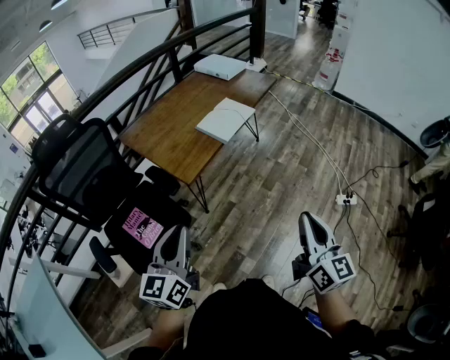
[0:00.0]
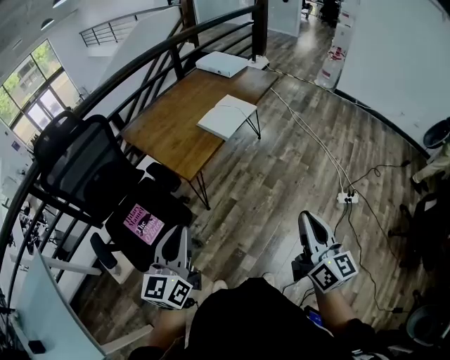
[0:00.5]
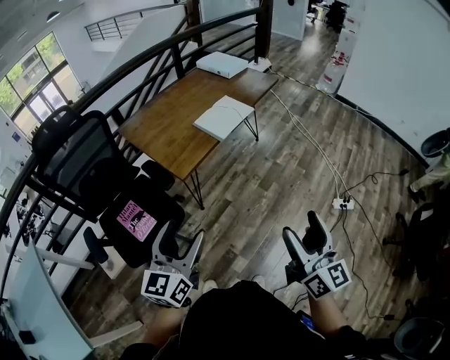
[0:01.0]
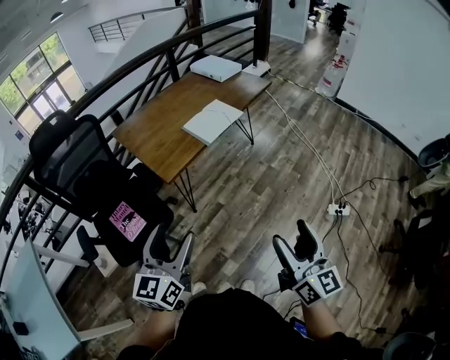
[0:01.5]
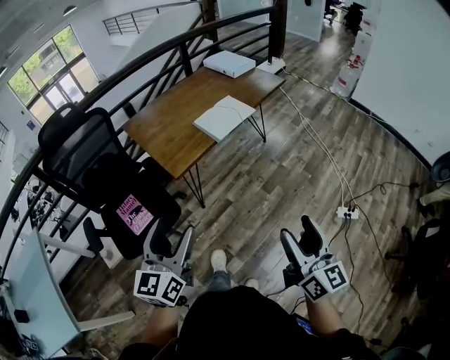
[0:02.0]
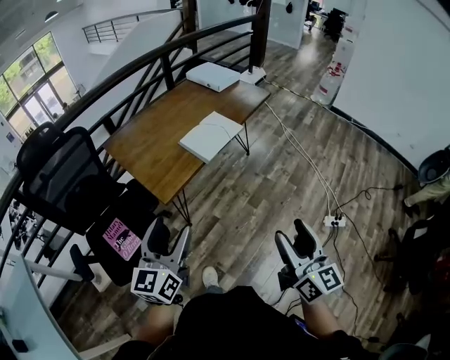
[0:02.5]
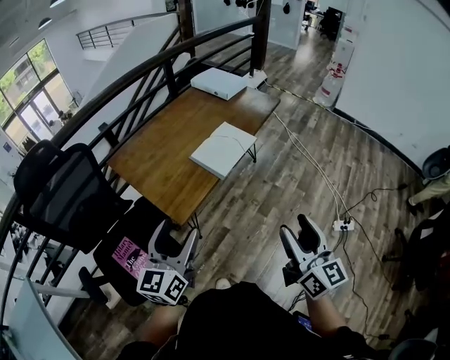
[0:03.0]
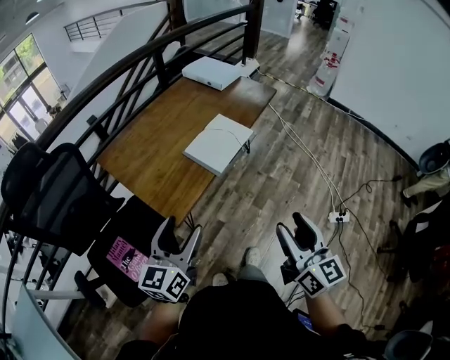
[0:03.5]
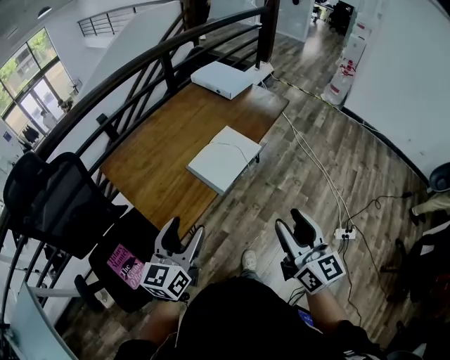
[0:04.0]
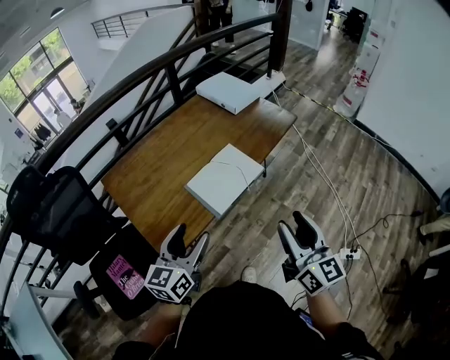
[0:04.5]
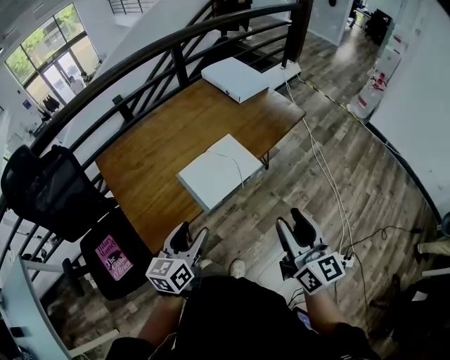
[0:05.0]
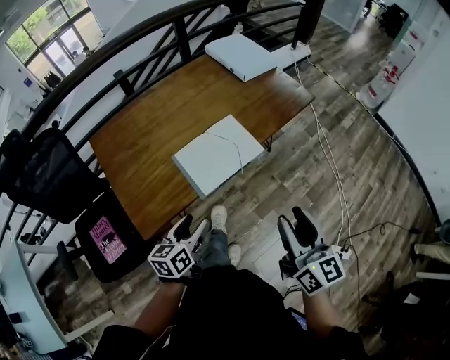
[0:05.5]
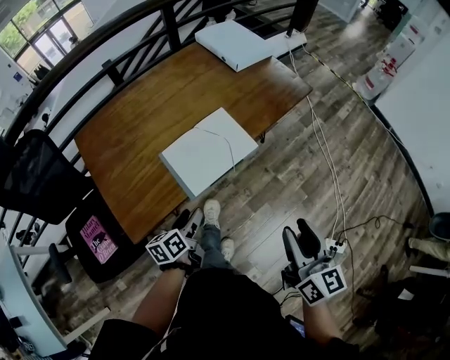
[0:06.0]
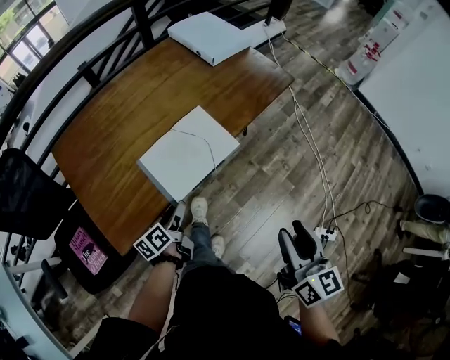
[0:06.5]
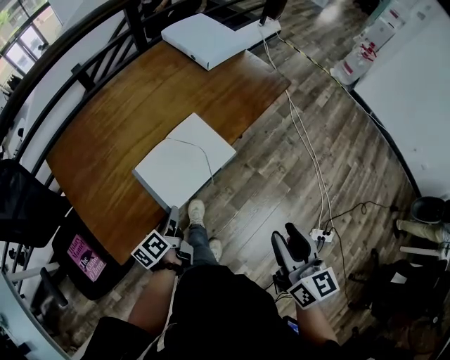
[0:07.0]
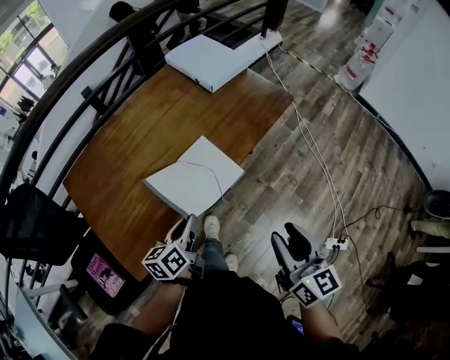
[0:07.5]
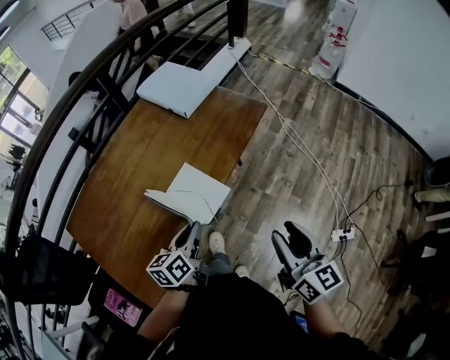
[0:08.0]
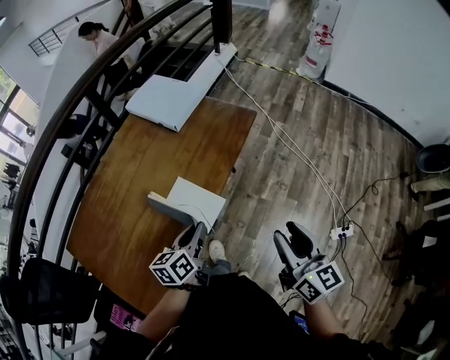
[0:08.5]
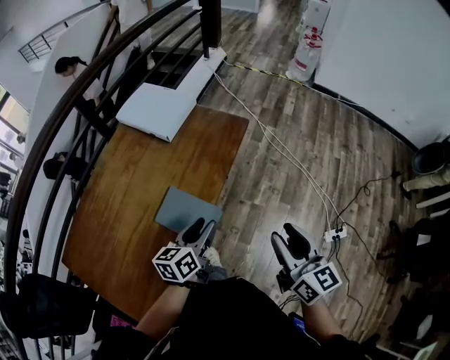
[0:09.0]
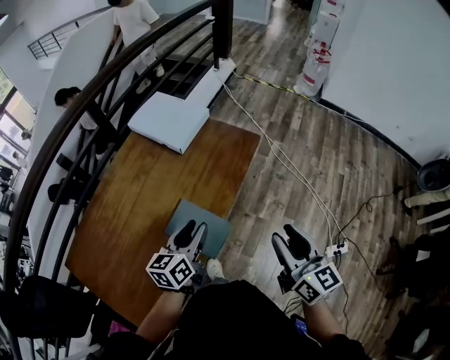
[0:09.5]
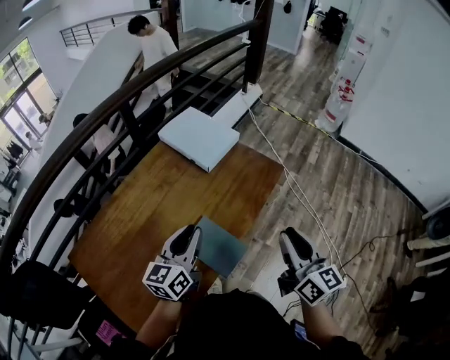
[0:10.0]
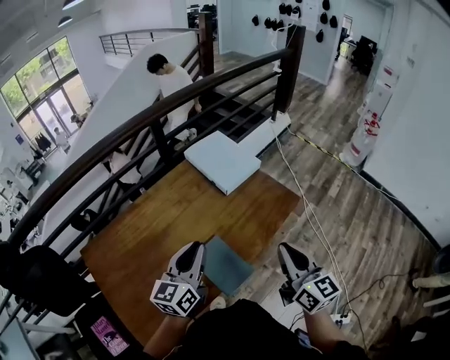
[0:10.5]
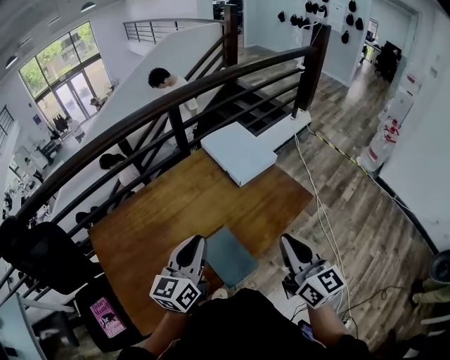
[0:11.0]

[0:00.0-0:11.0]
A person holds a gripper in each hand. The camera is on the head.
0:00.0 to 0:02.0: The grippers both shift to the right by about 10 cm. The left gripper opens up, while the right gripper opens.
0:02.0 to 0:03.5: The right gripper travels forward and to the left by roughly 20 cm; the left gripper is displaced forward by about 25 cm.
0:03.5 to 0:05.5: The right gripper travels forward and to the right by approximately 25 cm. The left gripper goes approximately 25 cm downward, forward and to the right, and swivels approximately 30 degrees.
0:05.5 to 0:07.5: The left gripper heads forward, covering some 15 cm, and closes its fingers, while the right gripper shifts roughly 5 cm forward.
0:07.5 to 0:09.0: The right gripper shifts roughly 10 cm forward, while the left gripper moves forward and to the right, approximately 15 cm, changes its angle by approximately 30 degrees, and opens up.
0:09.0 to 0:11.0: The right gripper shifts by about 20 cm, turns by some 30 degrees, and closes its fingers. Meanwhile the left gripper shifts by about 20 cm, changes its angle by about 40 degrees, and closes its fingers.

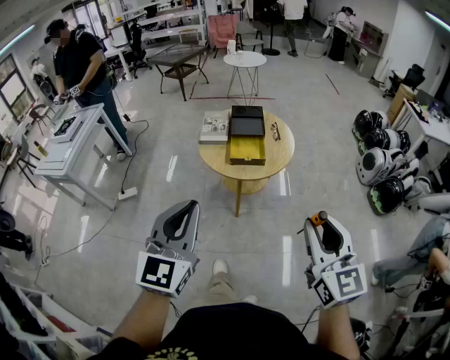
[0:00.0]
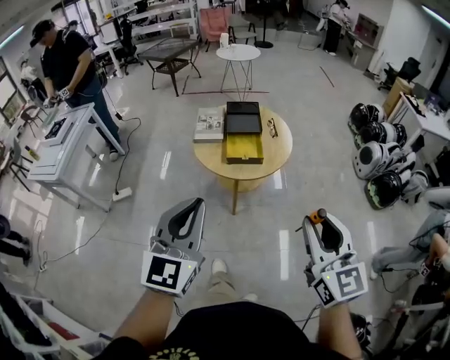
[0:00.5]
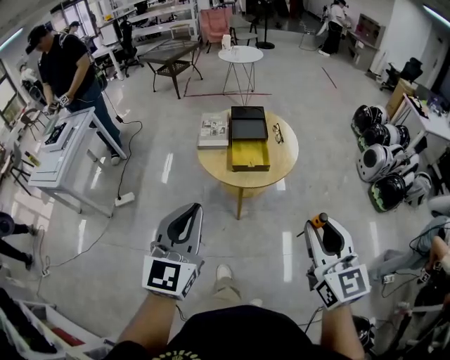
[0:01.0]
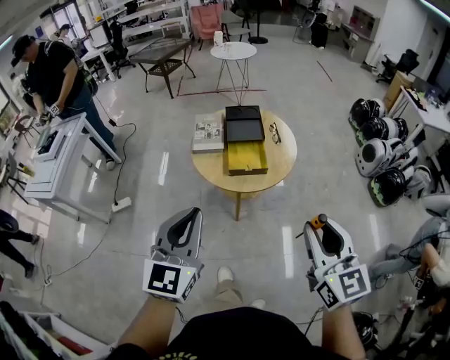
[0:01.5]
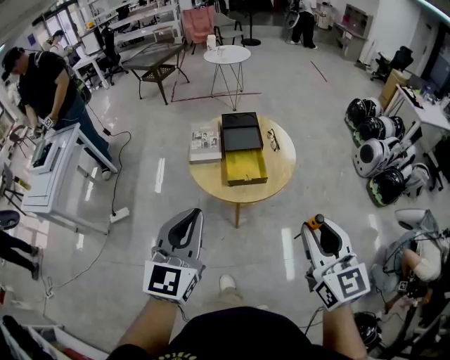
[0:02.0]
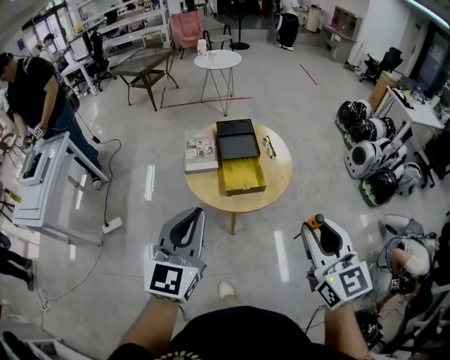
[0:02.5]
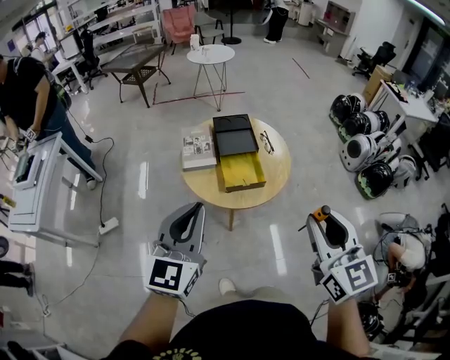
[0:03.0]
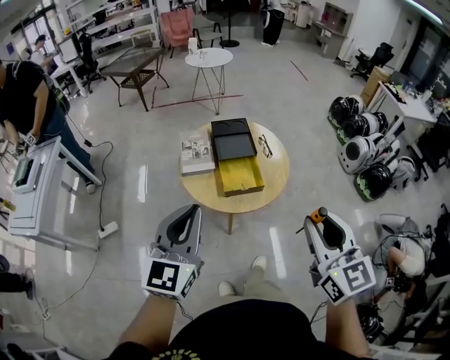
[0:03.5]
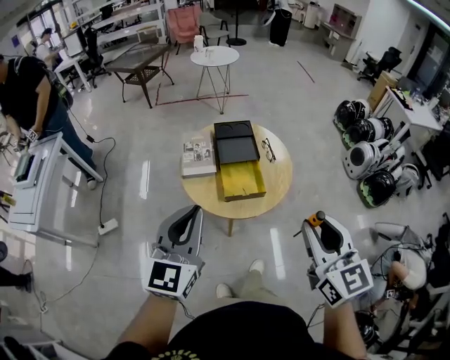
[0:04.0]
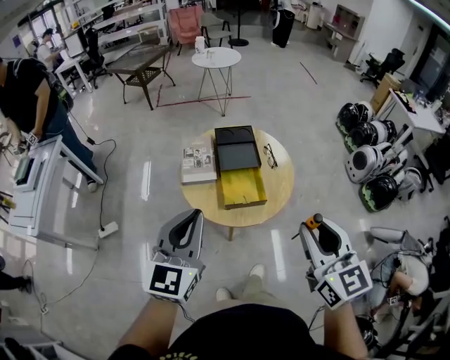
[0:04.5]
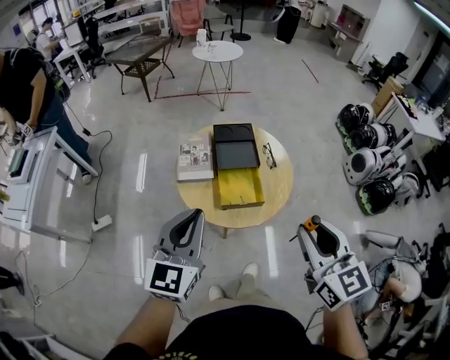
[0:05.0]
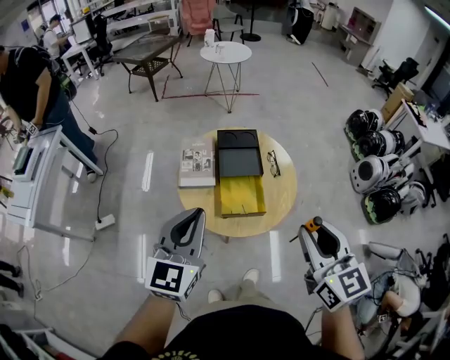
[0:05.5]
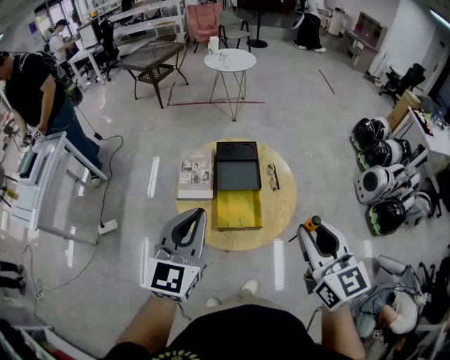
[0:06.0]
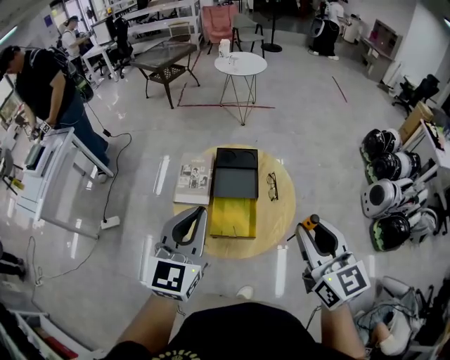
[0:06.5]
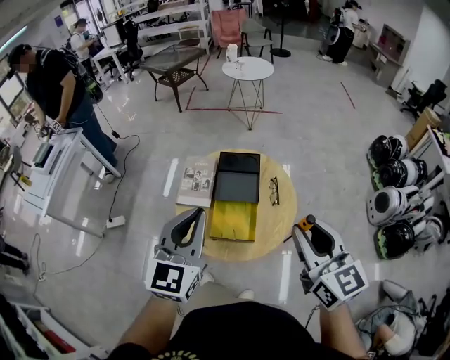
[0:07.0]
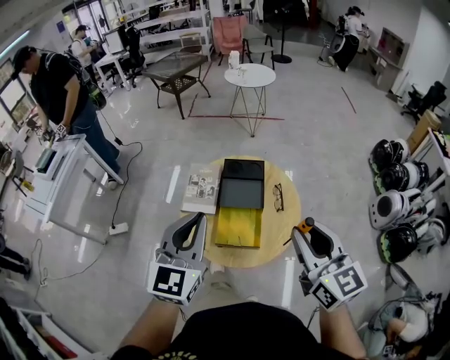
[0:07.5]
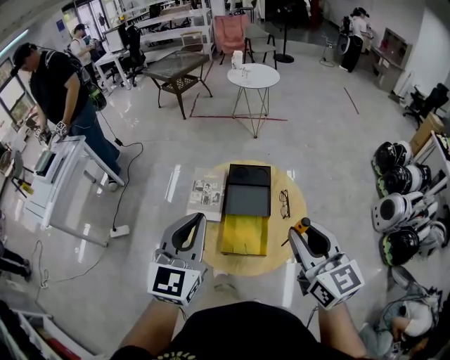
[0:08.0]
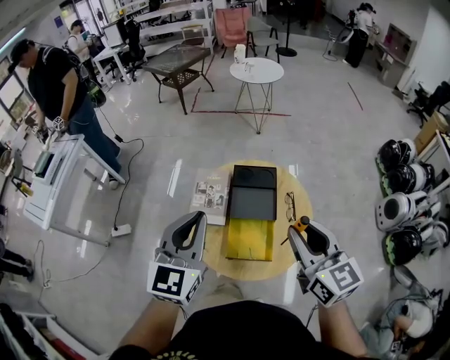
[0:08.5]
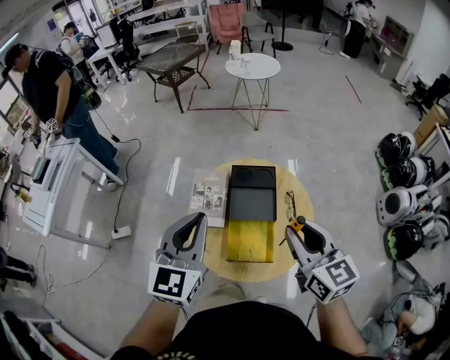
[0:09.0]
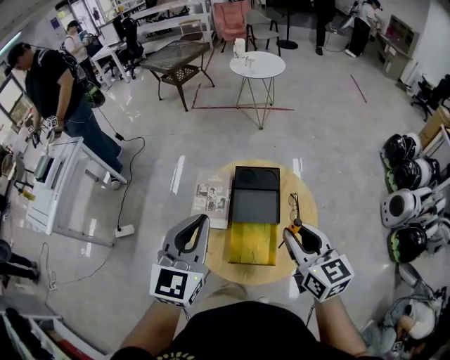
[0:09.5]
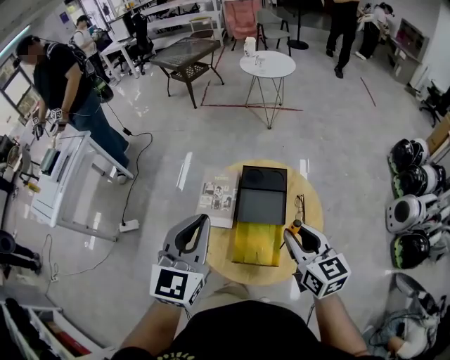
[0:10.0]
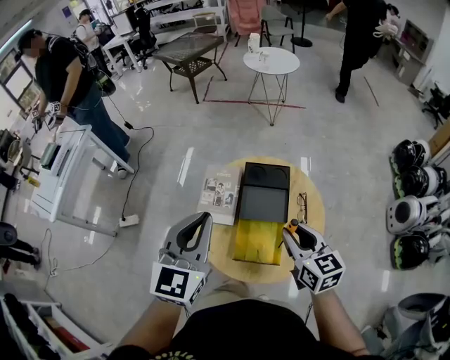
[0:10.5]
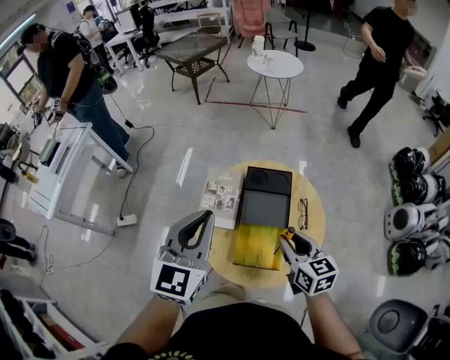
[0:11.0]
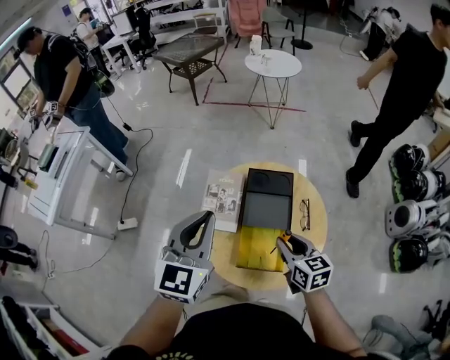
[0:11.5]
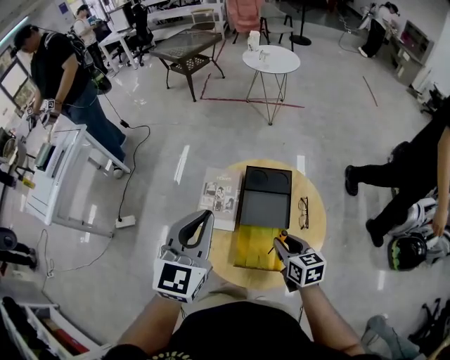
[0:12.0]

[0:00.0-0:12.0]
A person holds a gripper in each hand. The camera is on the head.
0:00.0 to 0:02.0: The two grippers go about 20 cm forward.
0:02.0 to 0:04.0: The grippers both shift forward by about 10 cm.
0:04.0 to 0:06.0: The right gripper is displaced forward by about 15 cm, while the left gripper travels forward and to the right by about 15 cm.
0:06.0 to 0:08.0: The right gripper travels forward by approximately 10 cm, while the left gripper travels forward by some 5 cm.
0:08.0 to 0:10.0: The left gripper is displaced forward by about 10 cm, while the right gripper travels downward and forward by approximately 15 cm.
0:10.0 to 0:12.0: The right gripper travels downward by some 15 cm. The left gripper ends up approximately 5 cm from where it was.

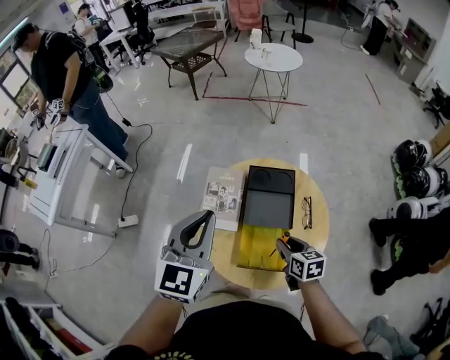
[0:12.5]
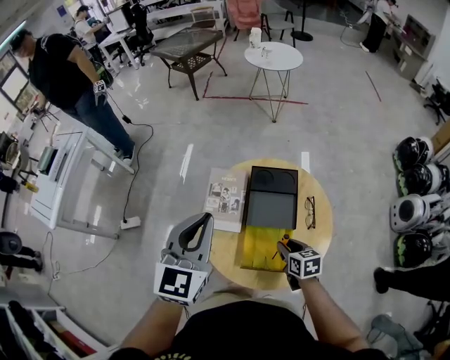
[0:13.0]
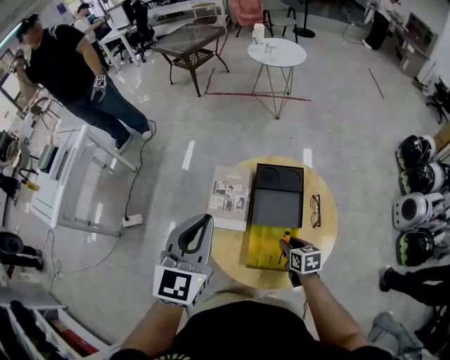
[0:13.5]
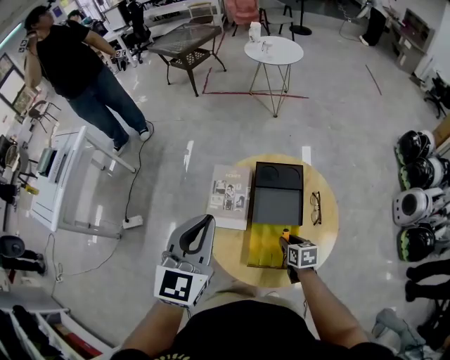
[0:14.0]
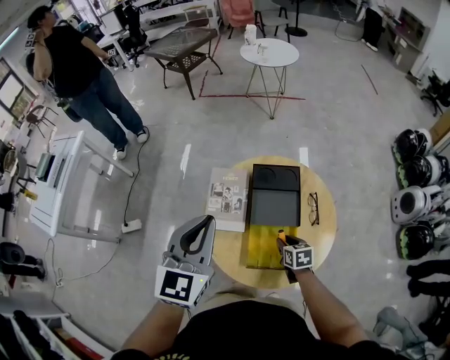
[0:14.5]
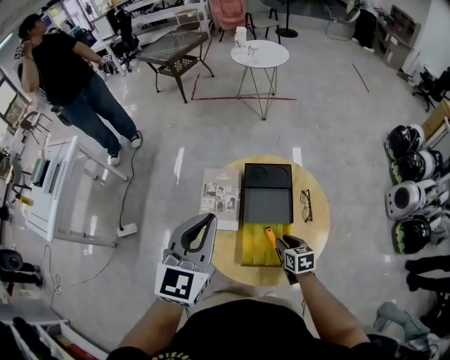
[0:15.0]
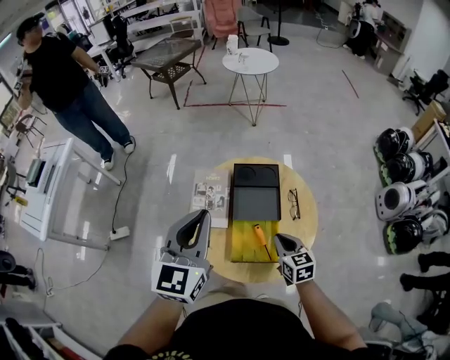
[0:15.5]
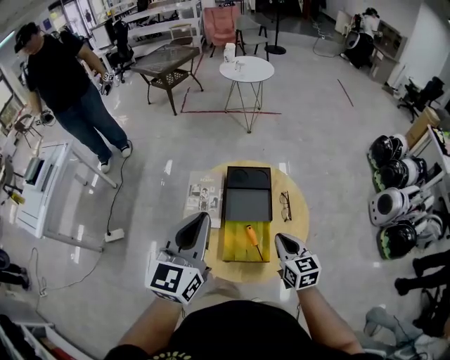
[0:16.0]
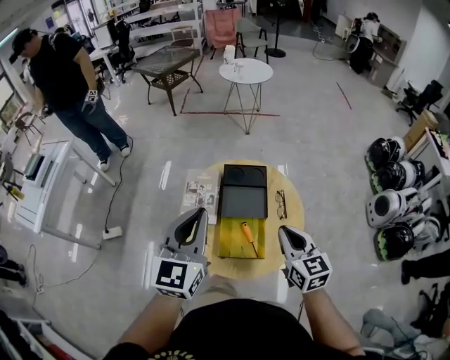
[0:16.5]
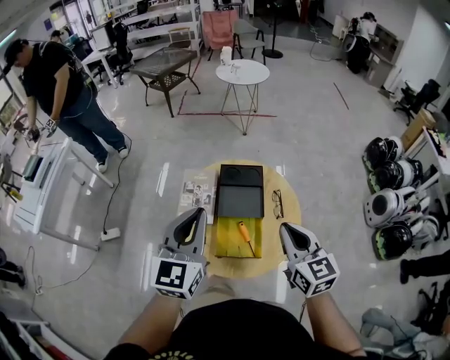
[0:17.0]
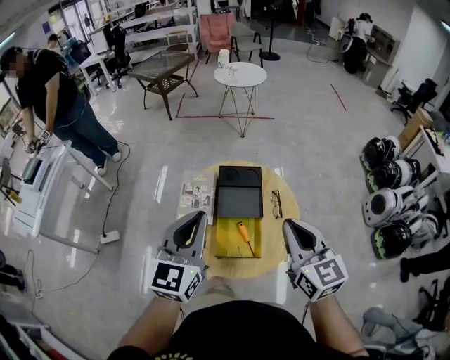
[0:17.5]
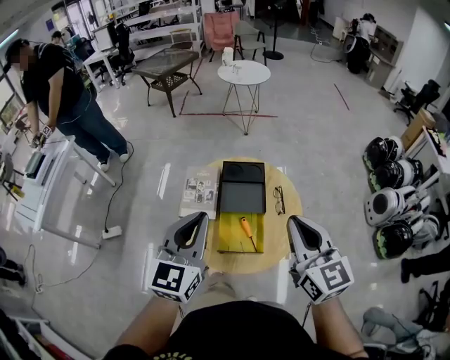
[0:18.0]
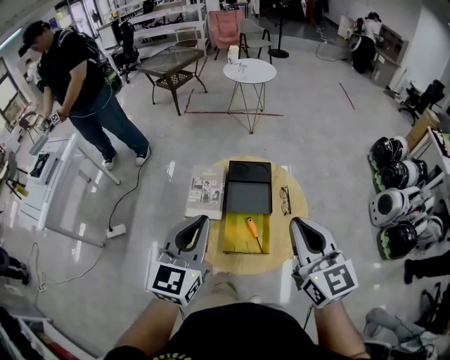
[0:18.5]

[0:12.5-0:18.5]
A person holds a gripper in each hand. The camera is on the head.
0:12.5 to 0:14.5: The right gripper goes some 10 cm downward.
0:14.5 to 0:16.5: The left gripper goes approximately 10 cm backward and to the right; the right gripper shifts approximately 30 cm upward, points its fingers roughly 30 degrees further upward, and closes up.
0:16.5 to 0:18.5: The right gripper heads upward, covering roughly 15 cm.
